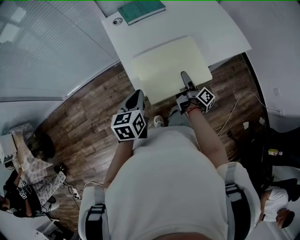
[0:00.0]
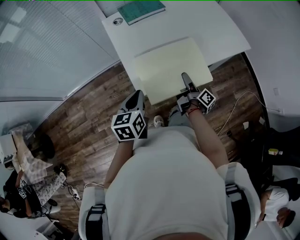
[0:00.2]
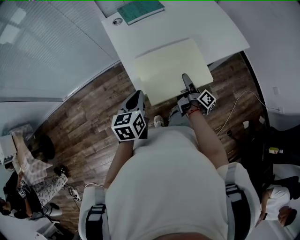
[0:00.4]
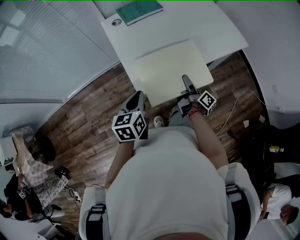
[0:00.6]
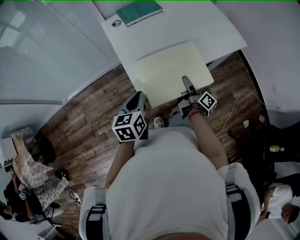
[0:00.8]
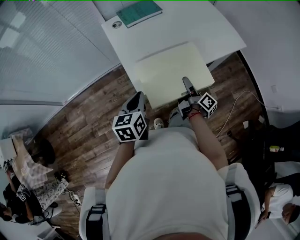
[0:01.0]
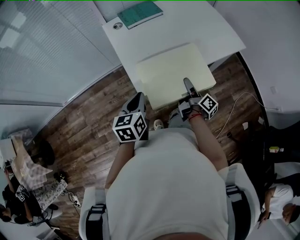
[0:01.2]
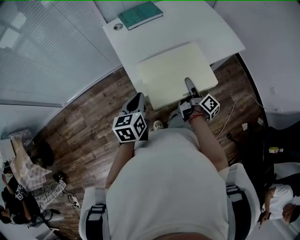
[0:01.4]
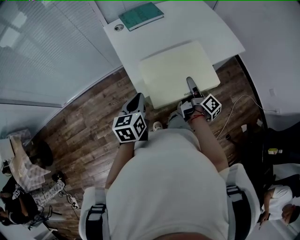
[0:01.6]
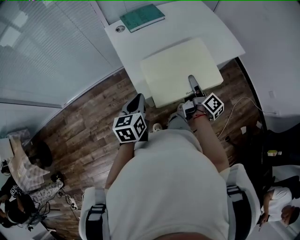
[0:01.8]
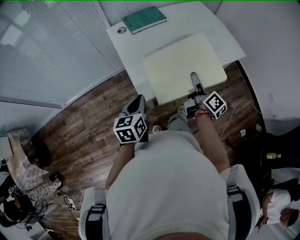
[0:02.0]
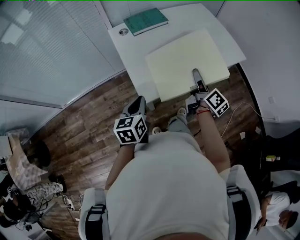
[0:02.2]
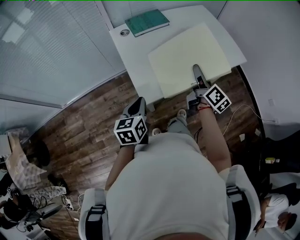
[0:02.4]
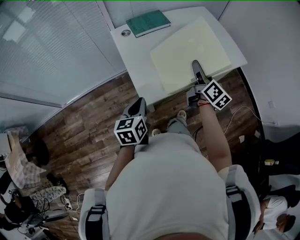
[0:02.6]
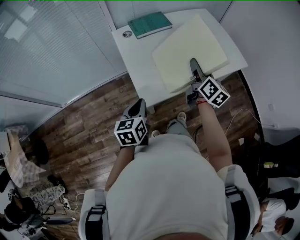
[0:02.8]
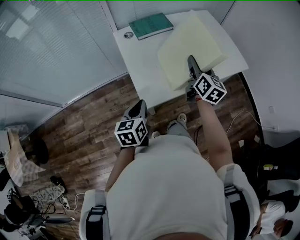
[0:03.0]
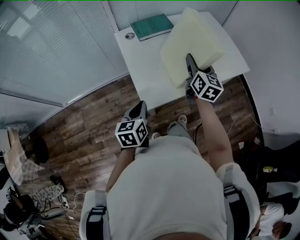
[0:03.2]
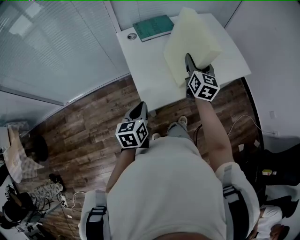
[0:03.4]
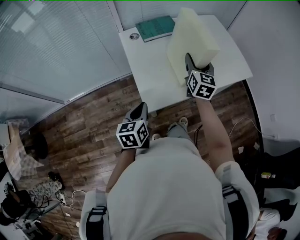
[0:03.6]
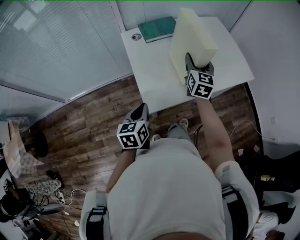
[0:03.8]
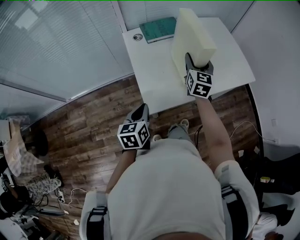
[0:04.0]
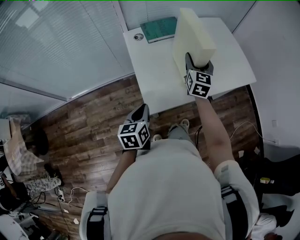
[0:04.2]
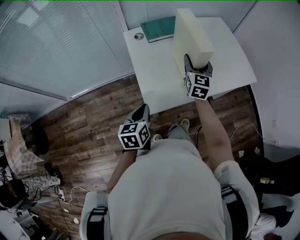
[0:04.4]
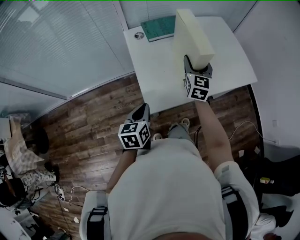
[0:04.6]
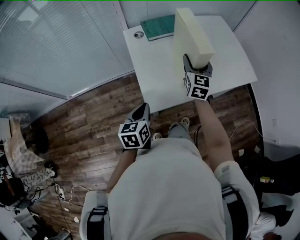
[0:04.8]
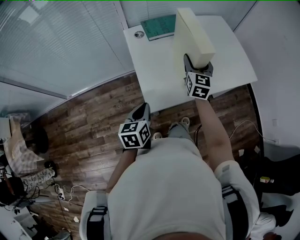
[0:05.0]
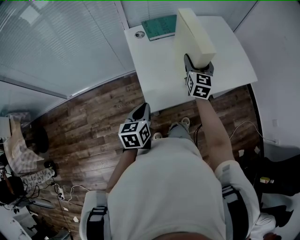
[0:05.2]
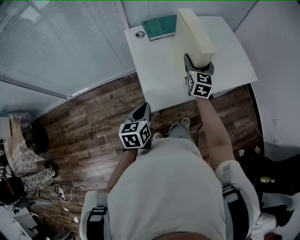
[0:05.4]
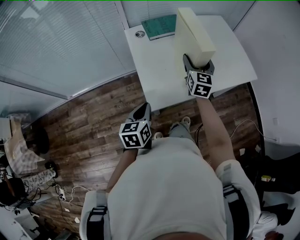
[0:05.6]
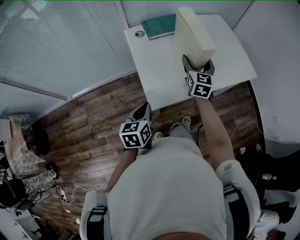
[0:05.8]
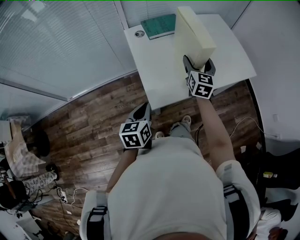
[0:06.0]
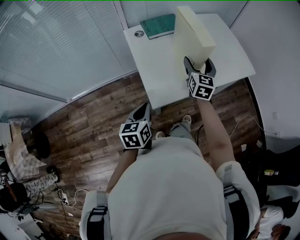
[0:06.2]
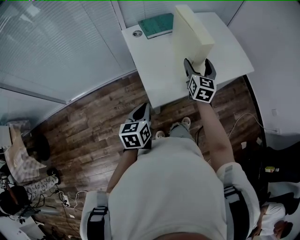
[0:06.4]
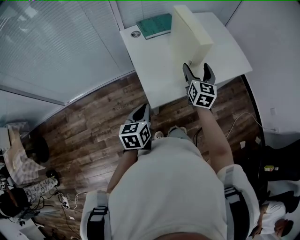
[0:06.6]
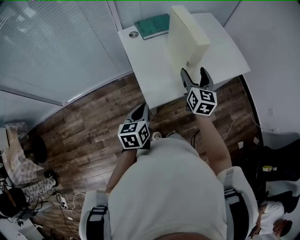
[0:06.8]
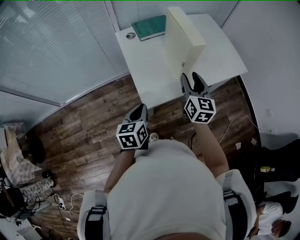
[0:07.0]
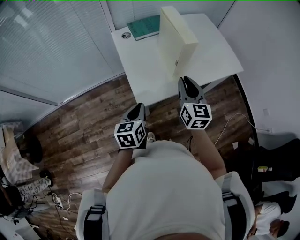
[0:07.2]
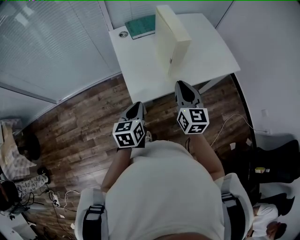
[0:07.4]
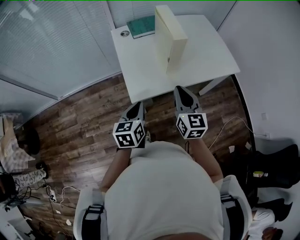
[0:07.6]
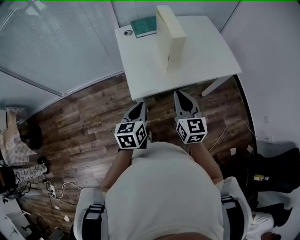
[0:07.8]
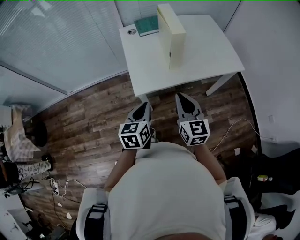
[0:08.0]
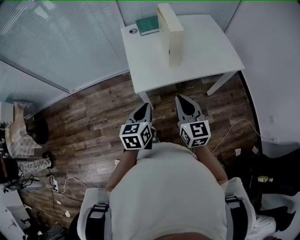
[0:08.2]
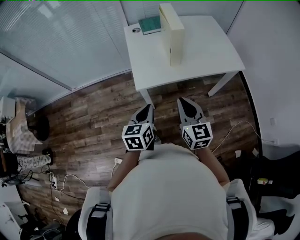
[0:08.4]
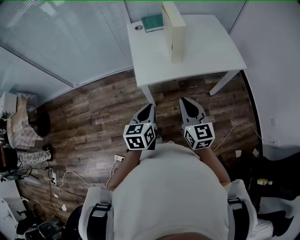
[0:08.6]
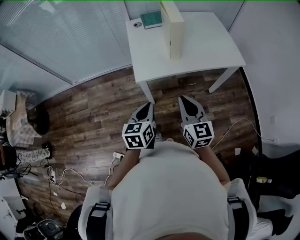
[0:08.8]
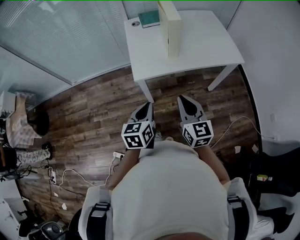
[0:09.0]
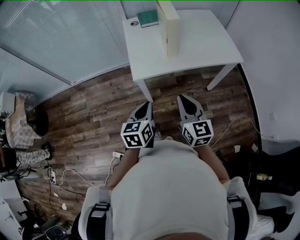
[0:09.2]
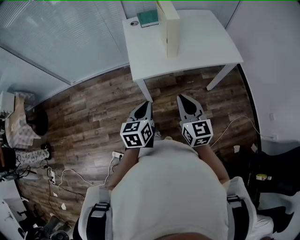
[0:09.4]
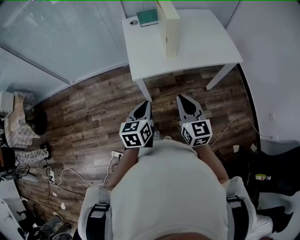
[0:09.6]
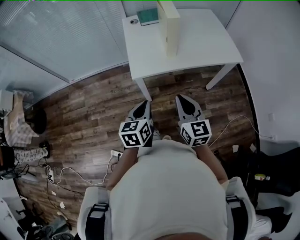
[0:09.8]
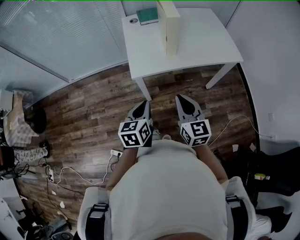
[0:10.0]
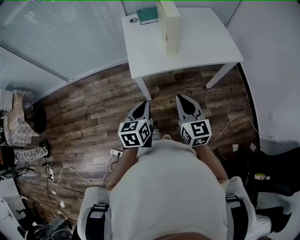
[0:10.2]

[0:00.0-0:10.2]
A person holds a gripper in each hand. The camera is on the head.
0:00.0 to 0:01.4: The right gripper changes place by roughly 5 cm.
0:01.4 to 0:03.0: The right gripper is displaced upward and forward by about 20 cm, and twists approximately 60 degrees counterclockwise, seen from behind.
0:03.0 to 0:04.4: The right gripper shifts some 10 cm forward and to the left, and rotates roughly 30 degrees.
0:04.4 to 0:05.8: There are only small adjustments of the grippers.
0:05.8 to 0:07.2: The right gripper shifts roughly 15 cm backward, and closes.
0:07.2 to 0:08.8: The left gripper shifts some 20 cm backward and to the right; the right gripper travels backward by roughly 20 cm.
0:08.8 to 0:10.2: The grippers make only small movements.

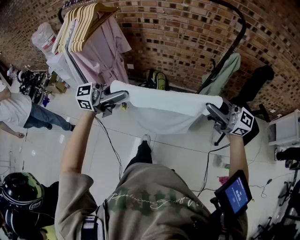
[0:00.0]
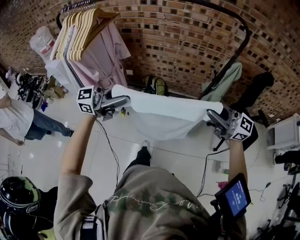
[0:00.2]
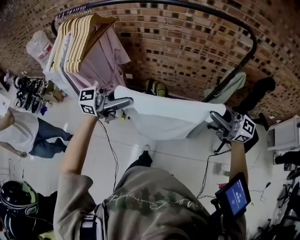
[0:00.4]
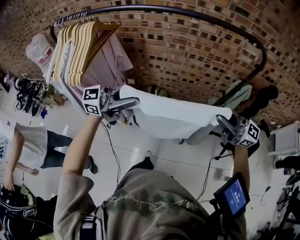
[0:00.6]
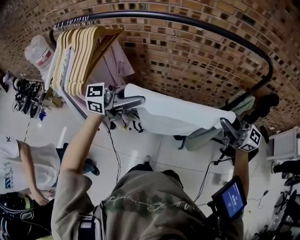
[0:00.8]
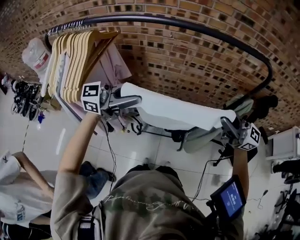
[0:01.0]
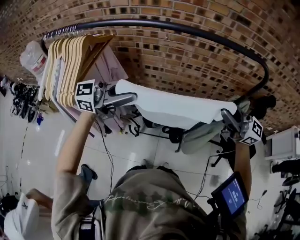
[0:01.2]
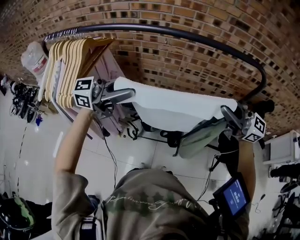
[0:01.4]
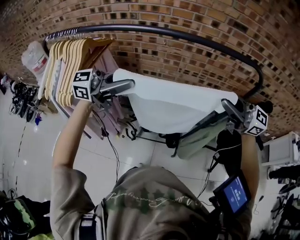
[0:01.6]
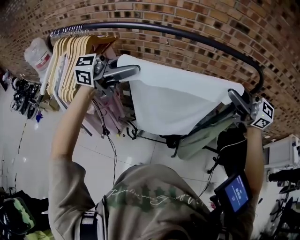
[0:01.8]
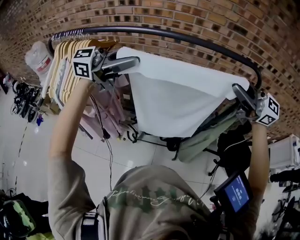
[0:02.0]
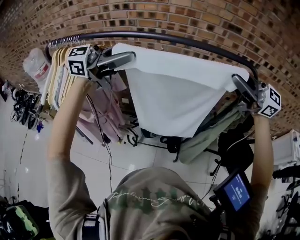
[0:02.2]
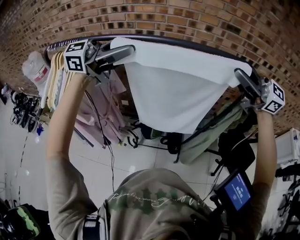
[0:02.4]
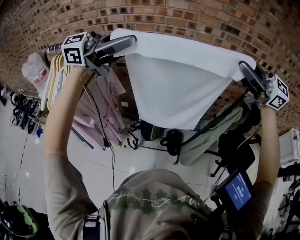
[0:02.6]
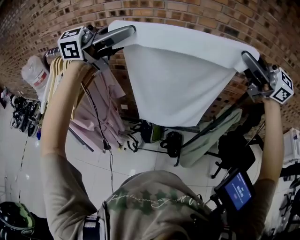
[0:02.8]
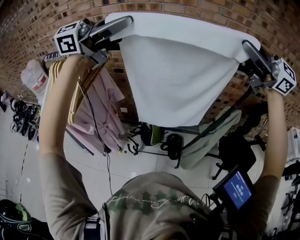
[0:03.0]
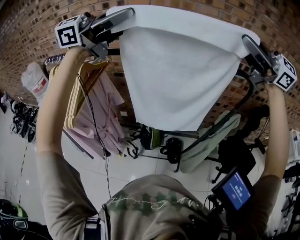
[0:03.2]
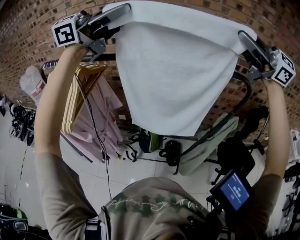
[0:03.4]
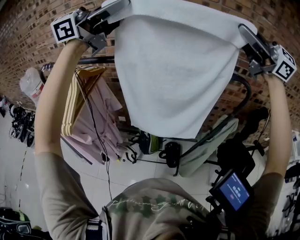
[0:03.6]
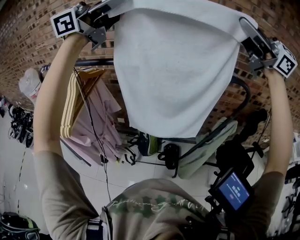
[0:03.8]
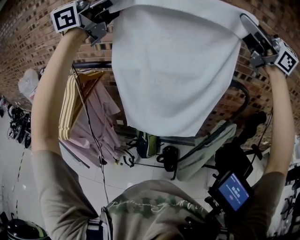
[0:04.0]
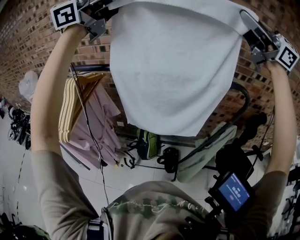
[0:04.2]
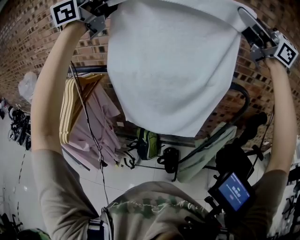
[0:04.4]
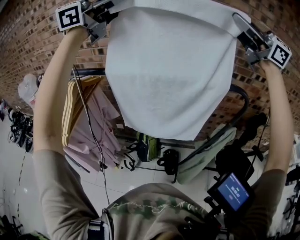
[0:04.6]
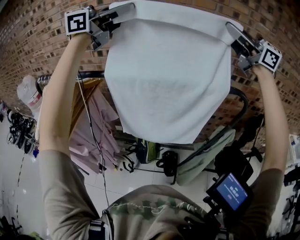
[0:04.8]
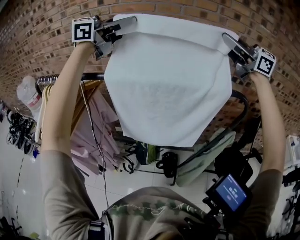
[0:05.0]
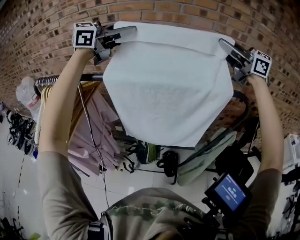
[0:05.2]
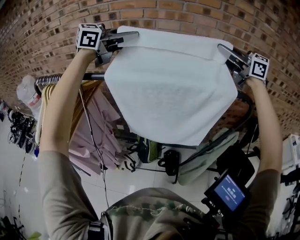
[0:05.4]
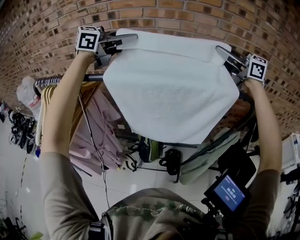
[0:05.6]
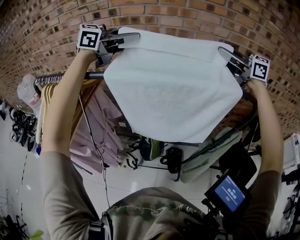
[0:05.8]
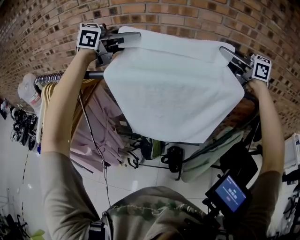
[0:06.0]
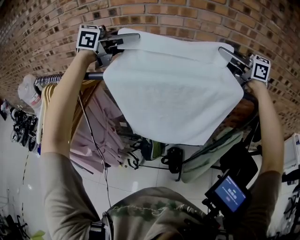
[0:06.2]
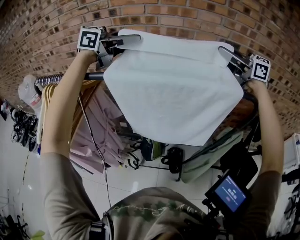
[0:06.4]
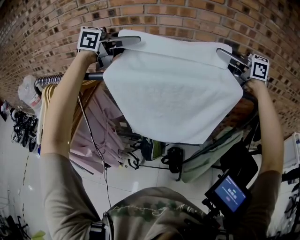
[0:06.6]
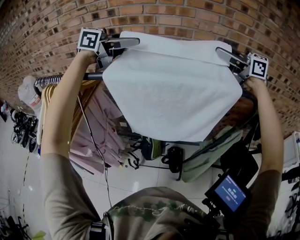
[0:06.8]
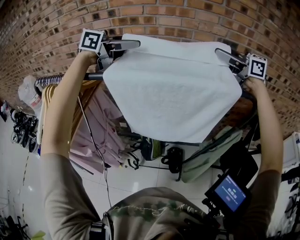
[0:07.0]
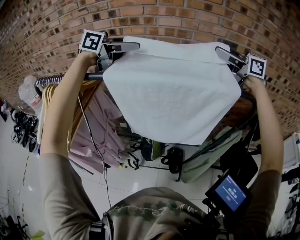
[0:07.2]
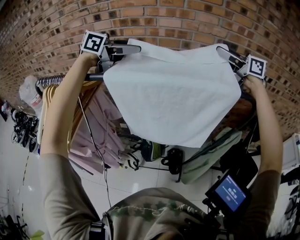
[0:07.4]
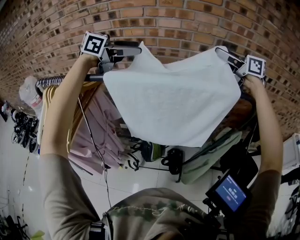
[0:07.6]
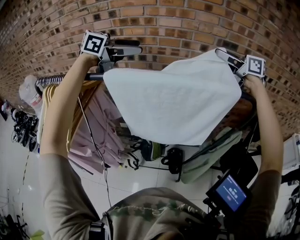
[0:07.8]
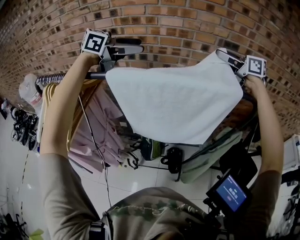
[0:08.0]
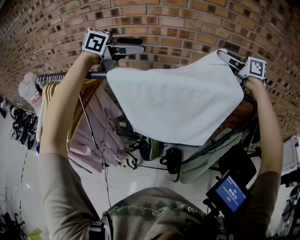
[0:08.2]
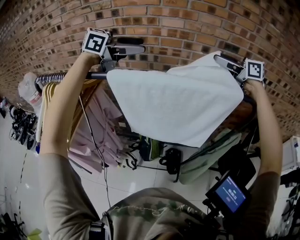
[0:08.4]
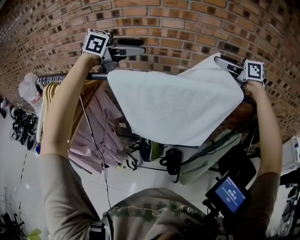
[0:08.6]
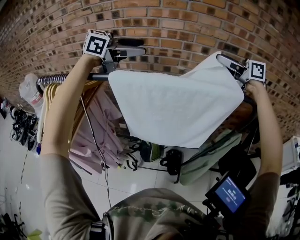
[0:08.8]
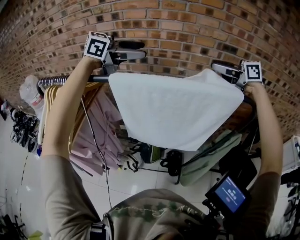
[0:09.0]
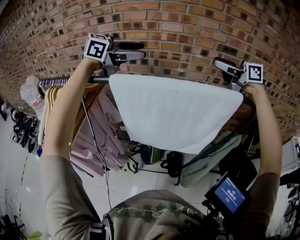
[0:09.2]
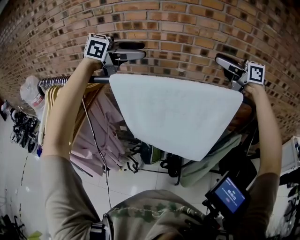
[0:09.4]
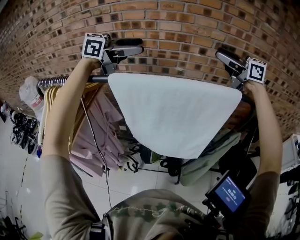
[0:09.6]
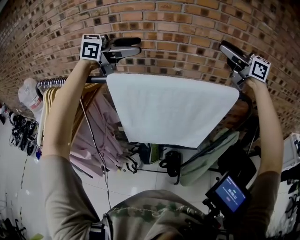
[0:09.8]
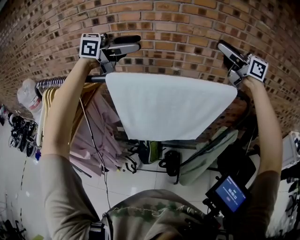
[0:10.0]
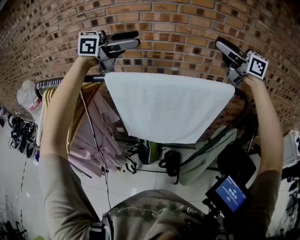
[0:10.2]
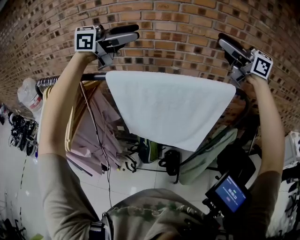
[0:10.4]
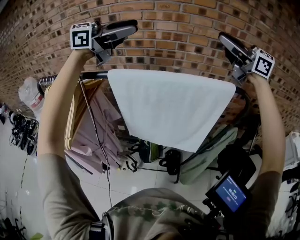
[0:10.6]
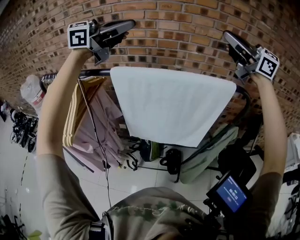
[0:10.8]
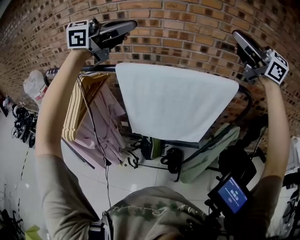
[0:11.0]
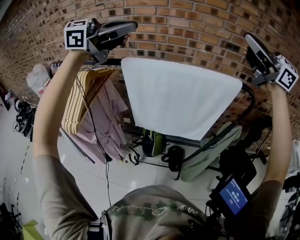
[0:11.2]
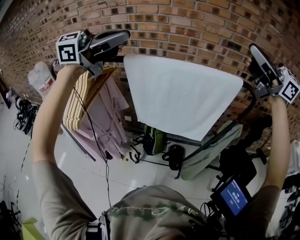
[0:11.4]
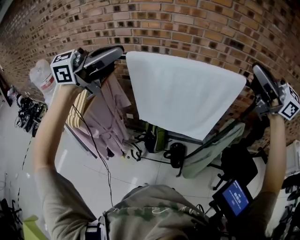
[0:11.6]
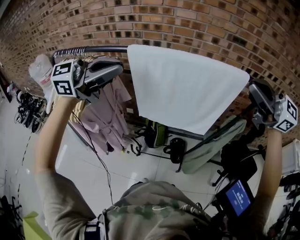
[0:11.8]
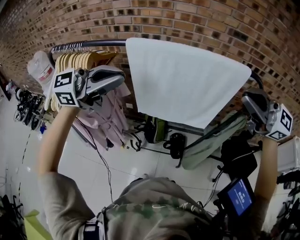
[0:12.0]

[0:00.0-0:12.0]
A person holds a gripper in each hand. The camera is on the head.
0:00.0 to 0:01.6: The left gripper moves some 30 cm. The right gripper changes place by some 30 cm.
0:01.6 to 0:03.0: The grippers both shift upward by roughly 25 cm.
0:03.0 to 0:04.4: Both grippers move upward, roughly 15 cm.
0:04.4 to 0:06.0: Both grippers travel together downward, some 20 cm. The left gripper rotates some 30 degrees, while the right gripper changes its angle by about 30 degrees.
0:06.0 to 0:07.6: The left gripper opens. Meanwhile the right gripper opens.
0:07.6 to 0:09.0: The right gripper changes place by some 5 cm.
0:09.0 to 0:10.4: The right gripper heads upward, covering roughly 15 cm, and changes its angle by about 30 degrees, while the left gripper shifts approximately 10 cm upward.
0:10.4 to 0:12.0: The left gripper moves some 25 cm, and closes, while the right gripper shifts by approximately 25 cm, and closes up.

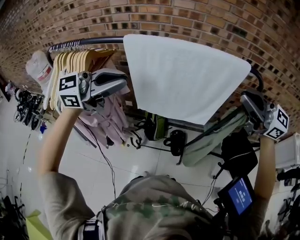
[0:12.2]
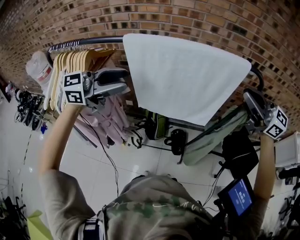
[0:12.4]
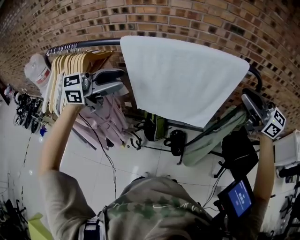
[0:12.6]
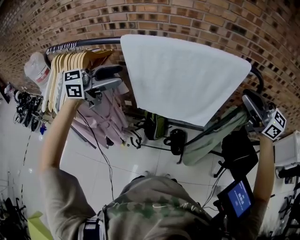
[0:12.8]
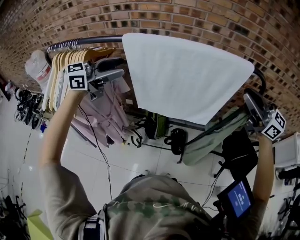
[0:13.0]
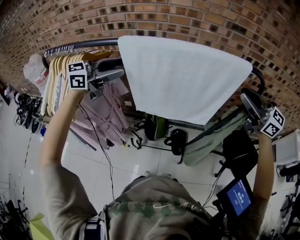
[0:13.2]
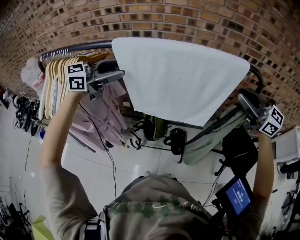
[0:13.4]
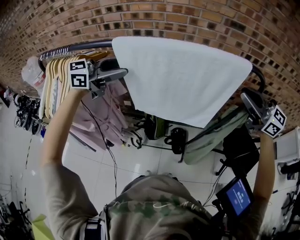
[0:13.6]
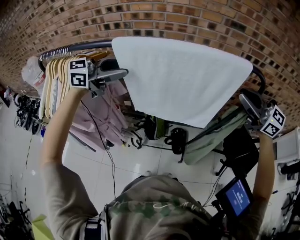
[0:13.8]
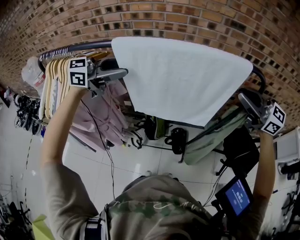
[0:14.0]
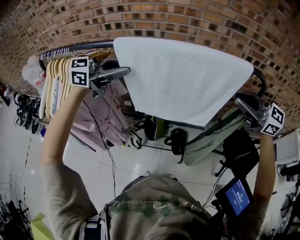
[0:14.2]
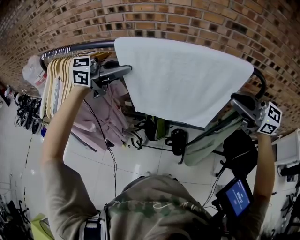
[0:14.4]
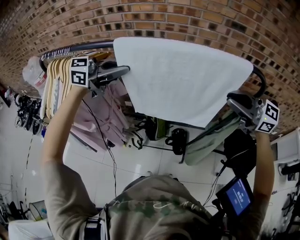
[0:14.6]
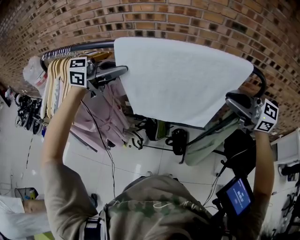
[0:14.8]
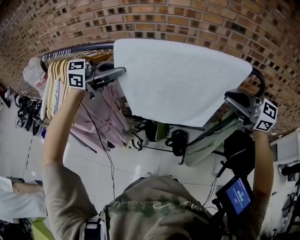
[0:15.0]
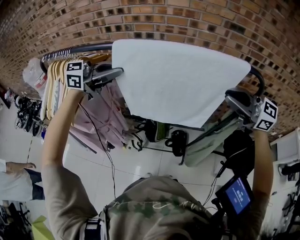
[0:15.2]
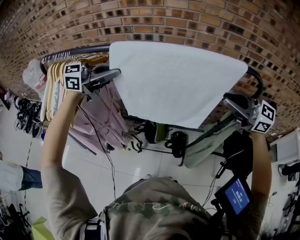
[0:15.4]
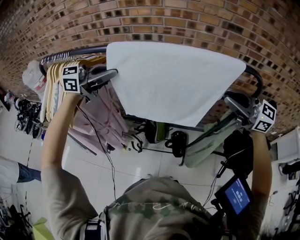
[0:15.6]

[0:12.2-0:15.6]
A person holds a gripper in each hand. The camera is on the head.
0:12.2 to 0:13.8: The left gripper ends up roughly 10 cm from where it was, and opens up. Meanwhile the right gripper moves about 10 cm.
0:13.8 to 0:15.6: The left gripper closes up. The right gripper shifts by approximately 5 cm.
